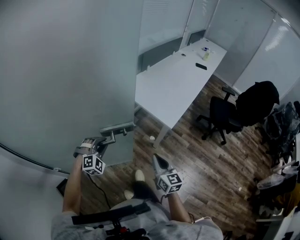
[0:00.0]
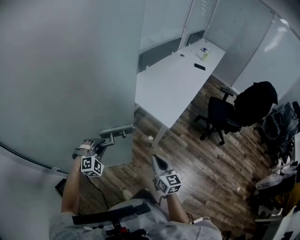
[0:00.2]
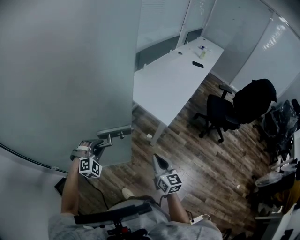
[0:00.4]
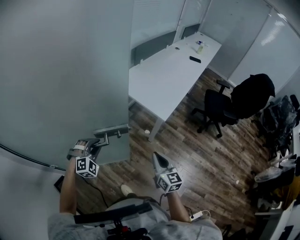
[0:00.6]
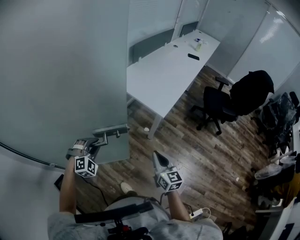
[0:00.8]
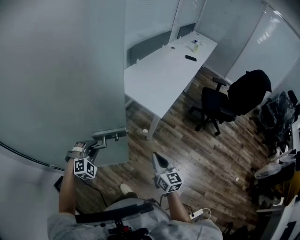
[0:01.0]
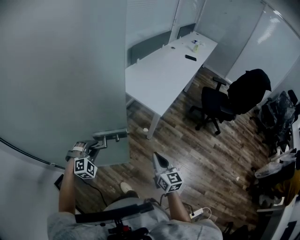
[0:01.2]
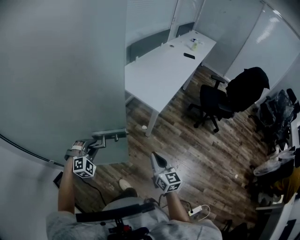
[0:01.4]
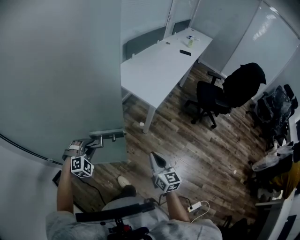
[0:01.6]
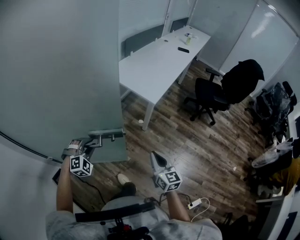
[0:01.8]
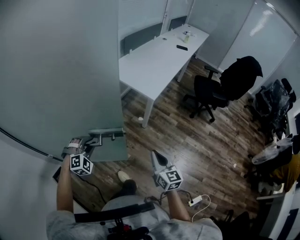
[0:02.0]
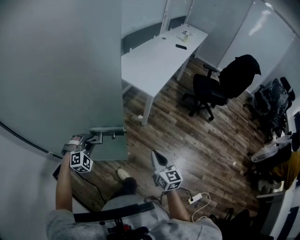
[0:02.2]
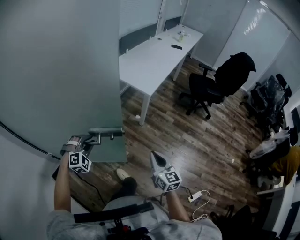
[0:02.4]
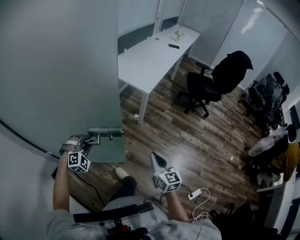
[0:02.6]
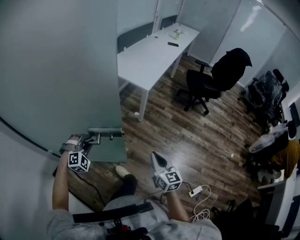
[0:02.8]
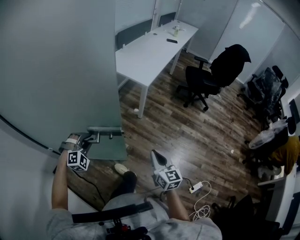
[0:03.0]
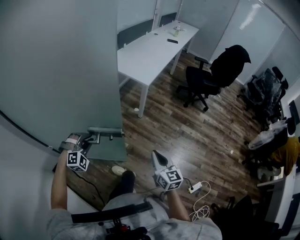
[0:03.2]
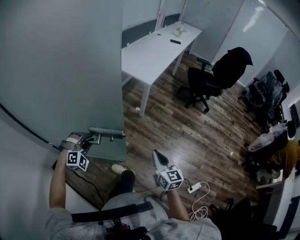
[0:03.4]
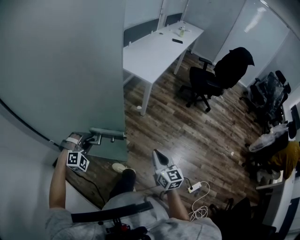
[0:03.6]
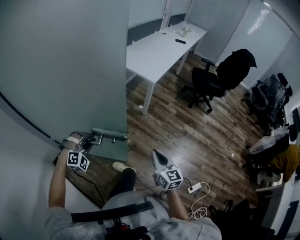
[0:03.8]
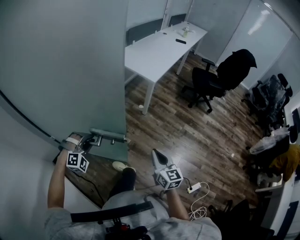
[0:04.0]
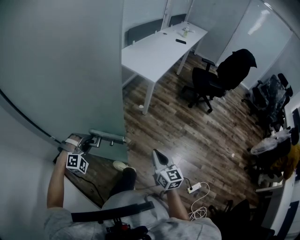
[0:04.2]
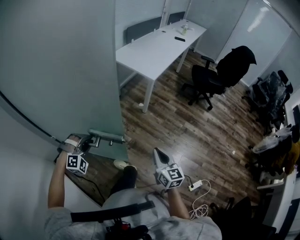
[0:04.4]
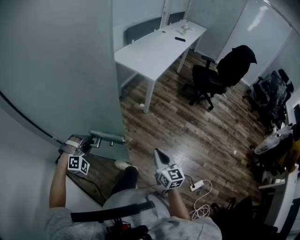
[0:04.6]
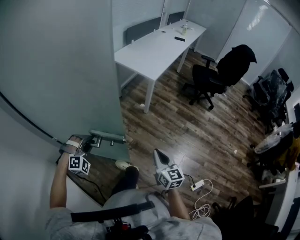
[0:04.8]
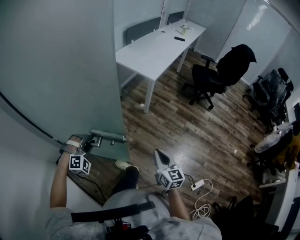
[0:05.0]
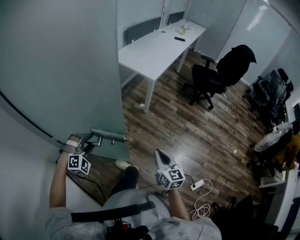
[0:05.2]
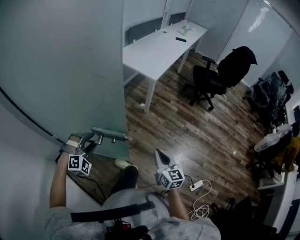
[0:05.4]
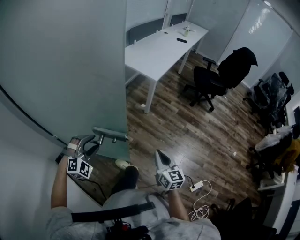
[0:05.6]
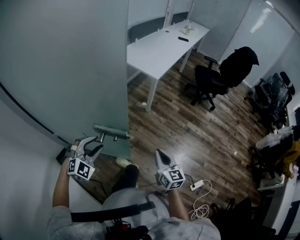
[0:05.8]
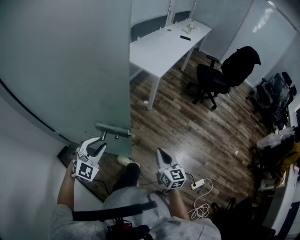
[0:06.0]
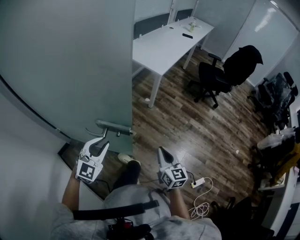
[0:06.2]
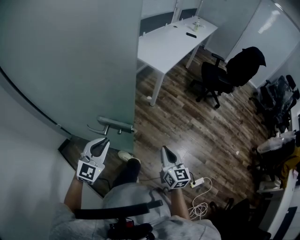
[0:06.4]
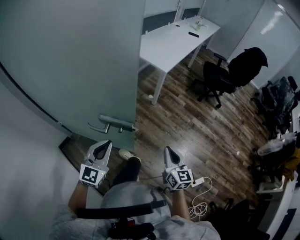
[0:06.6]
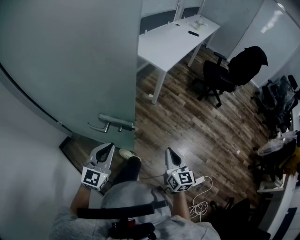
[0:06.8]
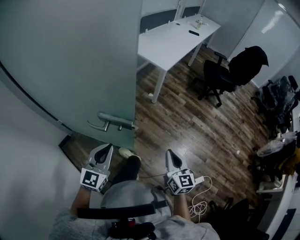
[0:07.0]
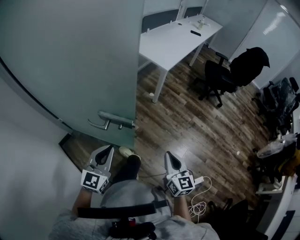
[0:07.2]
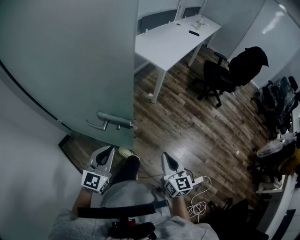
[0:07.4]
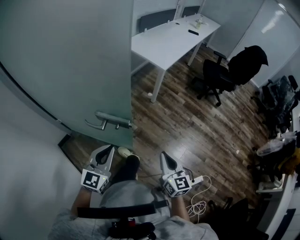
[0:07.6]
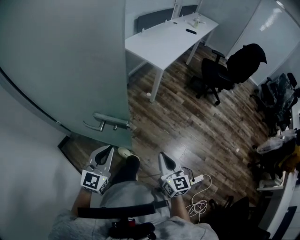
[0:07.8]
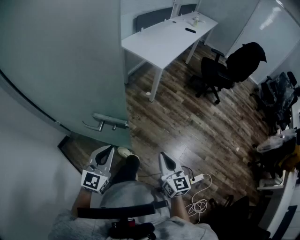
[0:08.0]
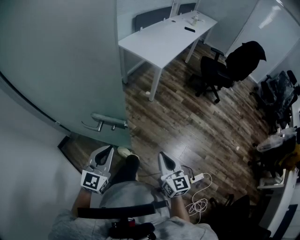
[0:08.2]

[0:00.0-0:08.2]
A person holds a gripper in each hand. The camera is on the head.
0:00.0 to 0:01.6: The left gripper shifts approximately 15 cm backward, while the right gripper travels backward and to the right by roughly 15 cm.
0:01.6 to 0:03.2: The grippers both shift backward by roughly 20 cm.
0:03.2 to 0:05.0: The left gripper is displaced backward by about 5 cm.
0:05.0 to 0:06.6: The left gripper travels upward, backward and to the right by approximately 15 cm, rolls counterclockwise, seen from behind, by roughly 70 degrees, and closes up.
0:06.6 to 0:08.2: The left gripper ends up approximately 5 cm from where it was.

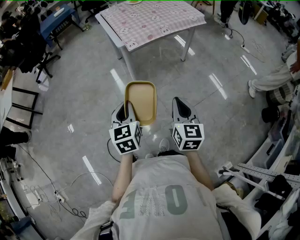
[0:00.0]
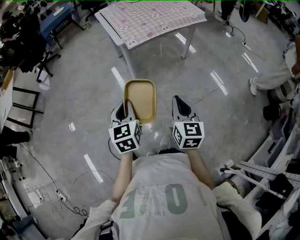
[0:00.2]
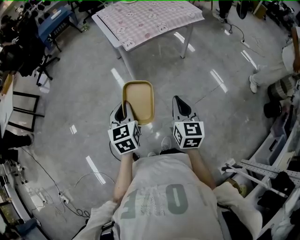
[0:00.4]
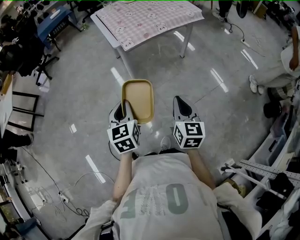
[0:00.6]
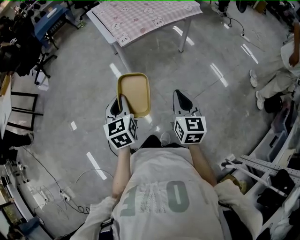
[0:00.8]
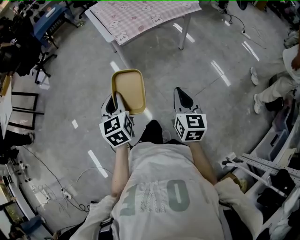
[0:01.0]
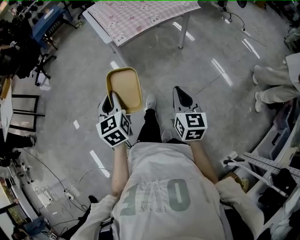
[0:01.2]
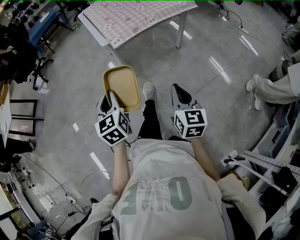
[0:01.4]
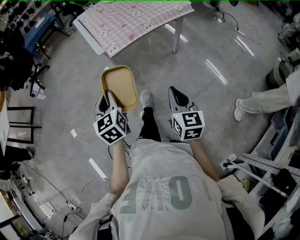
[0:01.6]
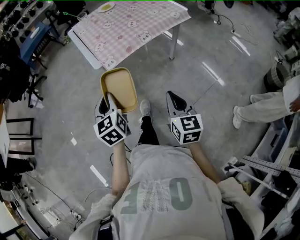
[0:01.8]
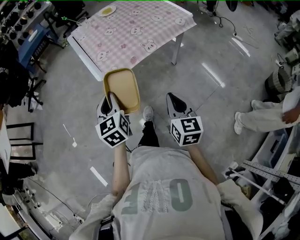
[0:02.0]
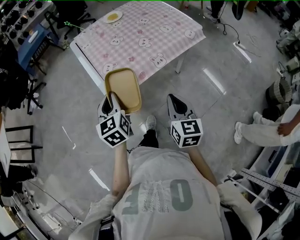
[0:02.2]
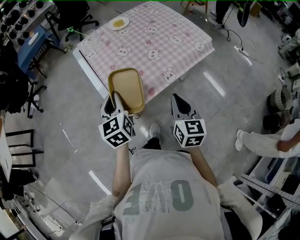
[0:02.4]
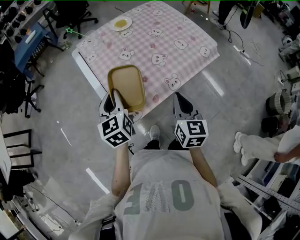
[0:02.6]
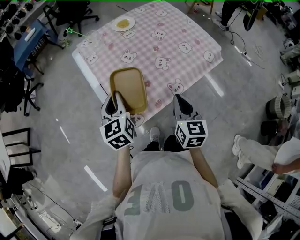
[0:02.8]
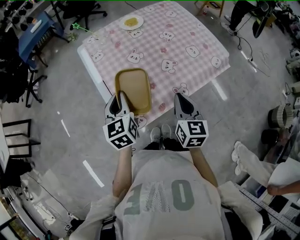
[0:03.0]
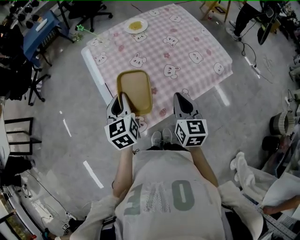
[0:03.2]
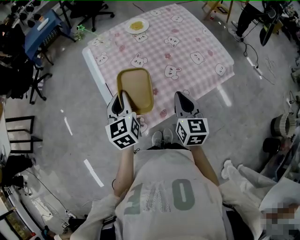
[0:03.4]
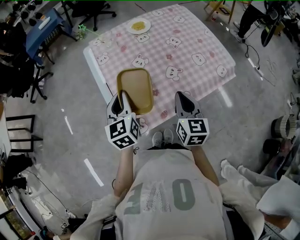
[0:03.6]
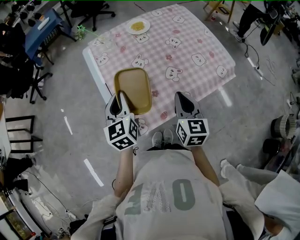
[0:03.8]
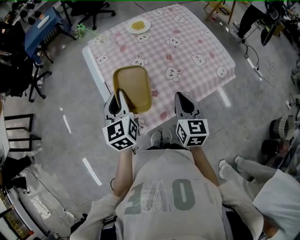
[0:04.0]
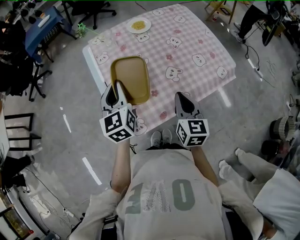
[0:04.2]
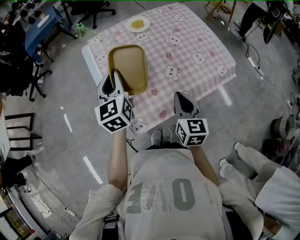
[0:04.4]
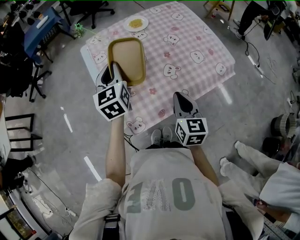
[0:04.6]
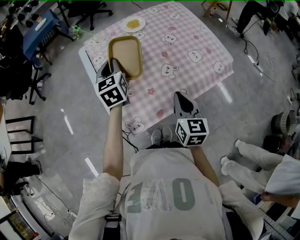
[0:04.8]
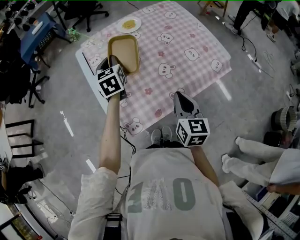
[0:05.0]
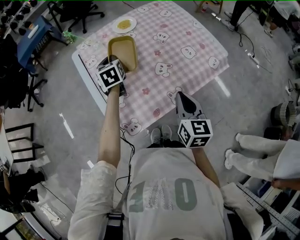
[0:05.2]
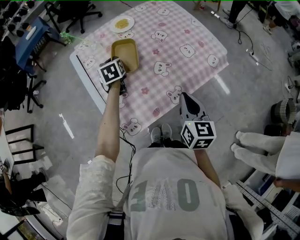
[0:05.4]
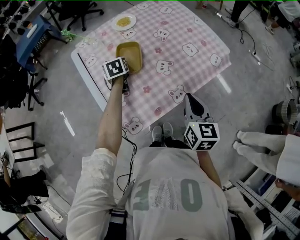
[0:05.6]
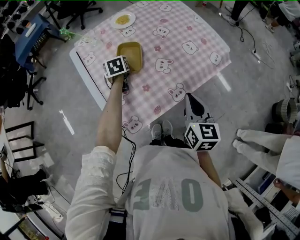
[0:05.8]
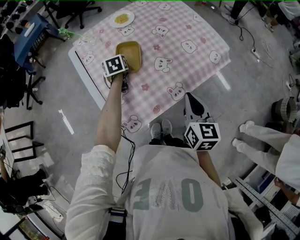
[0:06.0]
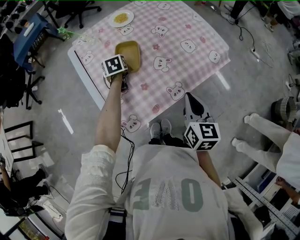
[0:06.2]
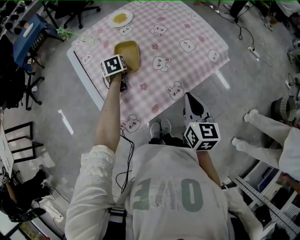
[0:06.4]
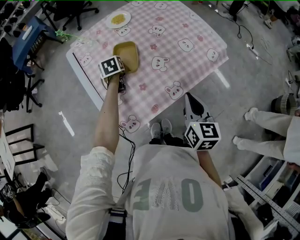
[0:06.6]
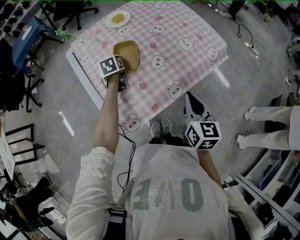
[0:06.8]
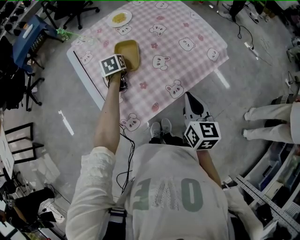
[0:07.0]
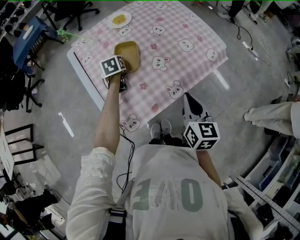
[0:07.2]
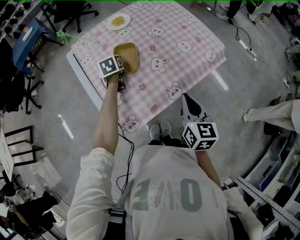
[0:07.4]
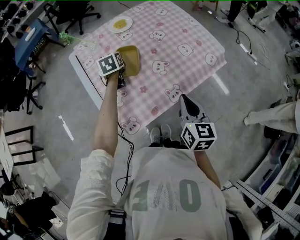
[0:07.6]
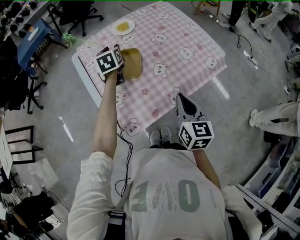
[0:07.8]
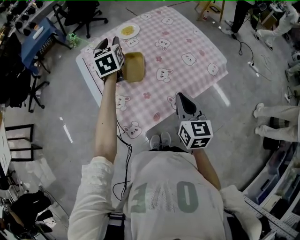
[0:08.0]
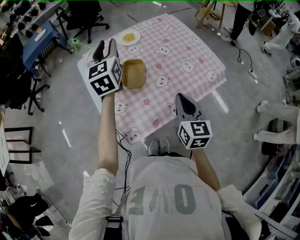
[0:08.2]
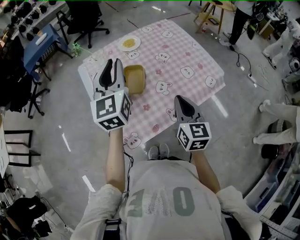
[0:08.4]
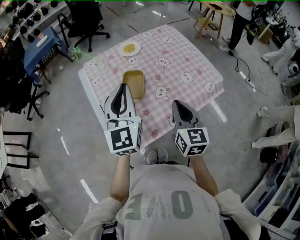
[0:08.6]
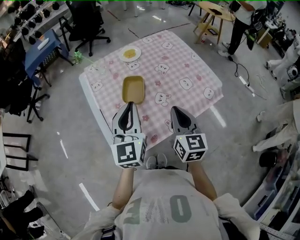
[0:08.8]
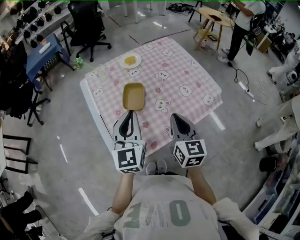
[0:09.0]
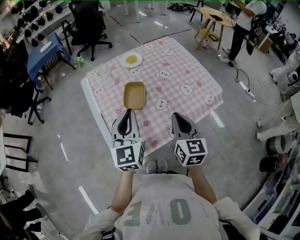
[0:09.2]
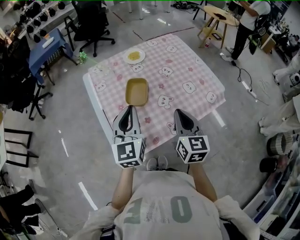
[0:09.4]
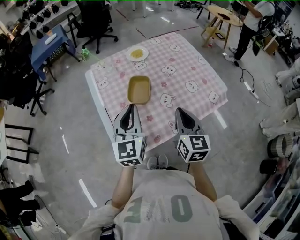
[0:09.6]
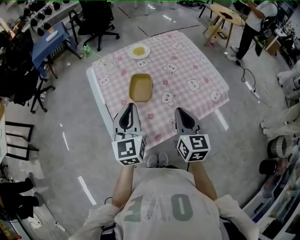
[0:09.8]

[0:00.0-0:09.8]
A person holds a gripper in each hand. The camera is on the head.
0:00.0 to 0:01.4: The left gripper goes approximately 10 cm forward. The right gripper travels to the right and forward by roughly 10 cm.
0:01.4 to 0:02.8: The pair of grippers is taken forward, about 50 cm.
0:02.8 to 0:04.2: The grippers both shift forward by some 5 cm.
0:04.2 to 0:05.6: The left gripper travels downward and forward by approximately 25 cm, and tilts its fingers some 30 degrees downward, while the right gripper goes some 5 cm to the right.
0:05.6 to 0:07.0: The left gripper opens up.
0:07.0 to 0:08.4: The right gripper travels forward and upward by roughly 10 cm; the left gripper heads upward, covering about 30 cm, and tips its fingers upward by about 50 degrees.
0:08.4 to 0:09.8: The left gripper goes roughly 15 cm downward and backward.

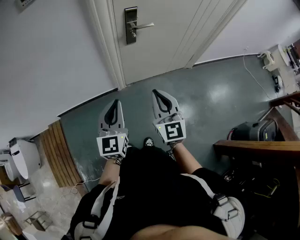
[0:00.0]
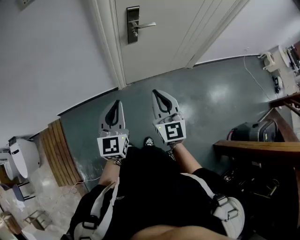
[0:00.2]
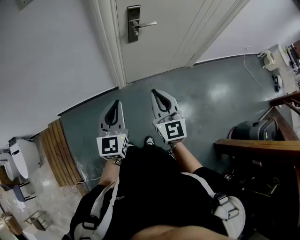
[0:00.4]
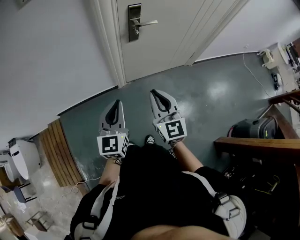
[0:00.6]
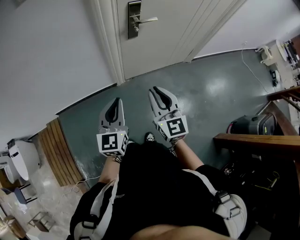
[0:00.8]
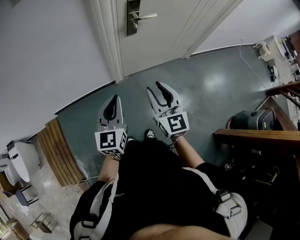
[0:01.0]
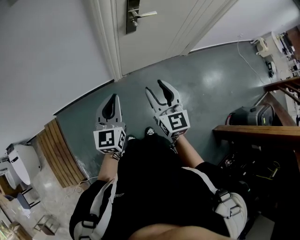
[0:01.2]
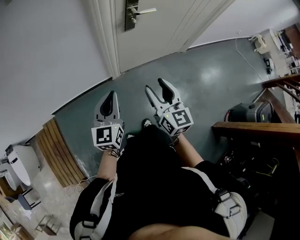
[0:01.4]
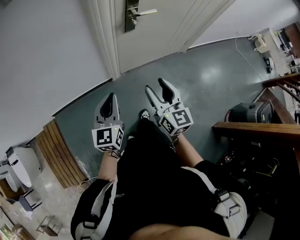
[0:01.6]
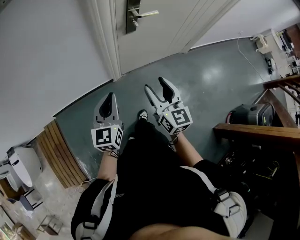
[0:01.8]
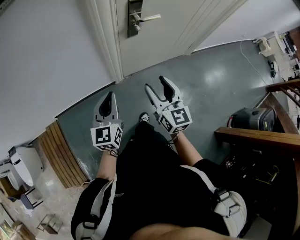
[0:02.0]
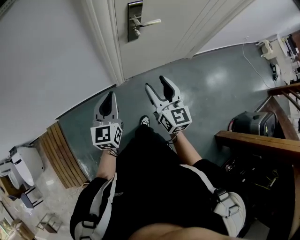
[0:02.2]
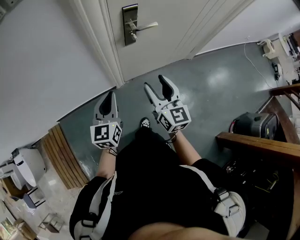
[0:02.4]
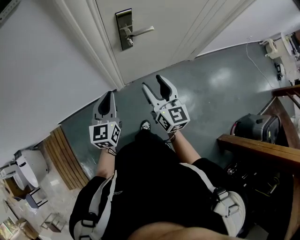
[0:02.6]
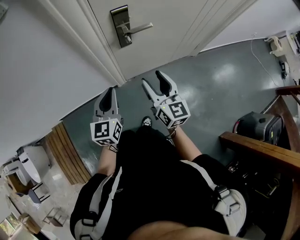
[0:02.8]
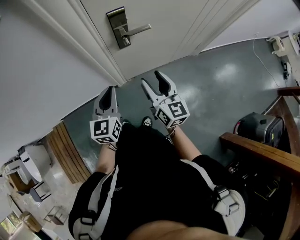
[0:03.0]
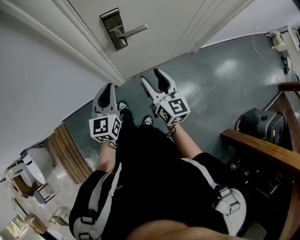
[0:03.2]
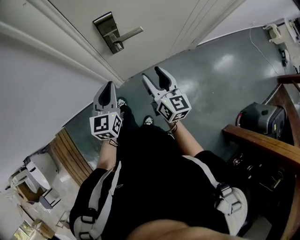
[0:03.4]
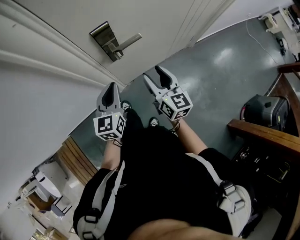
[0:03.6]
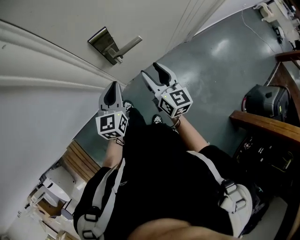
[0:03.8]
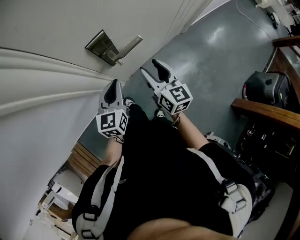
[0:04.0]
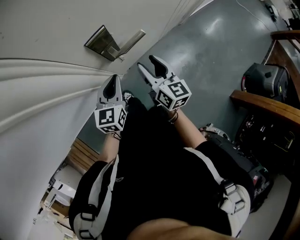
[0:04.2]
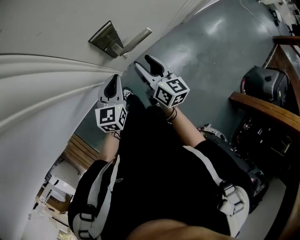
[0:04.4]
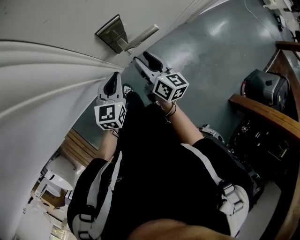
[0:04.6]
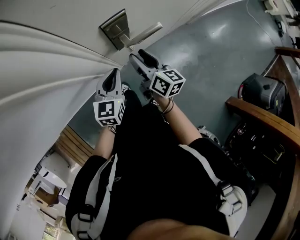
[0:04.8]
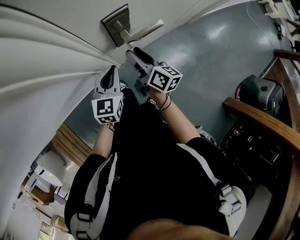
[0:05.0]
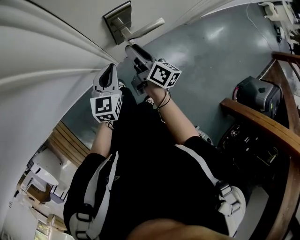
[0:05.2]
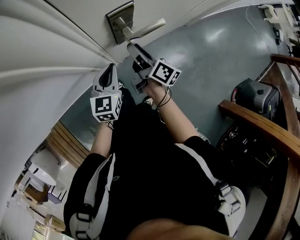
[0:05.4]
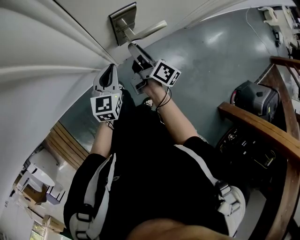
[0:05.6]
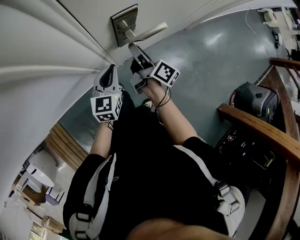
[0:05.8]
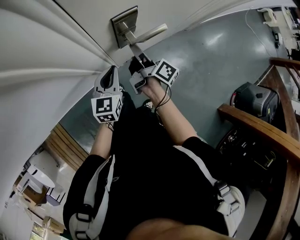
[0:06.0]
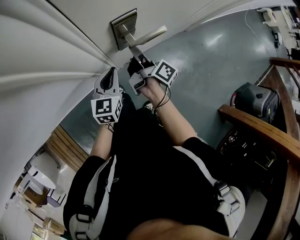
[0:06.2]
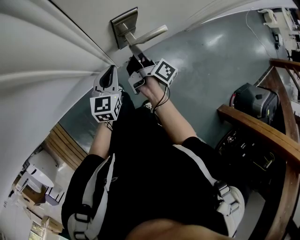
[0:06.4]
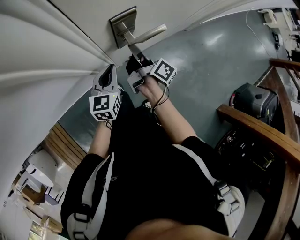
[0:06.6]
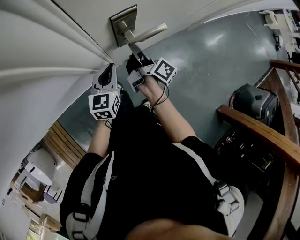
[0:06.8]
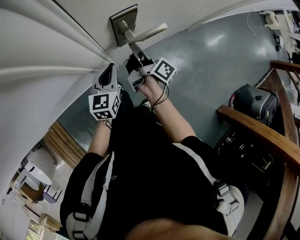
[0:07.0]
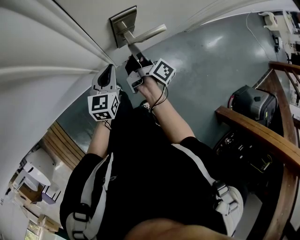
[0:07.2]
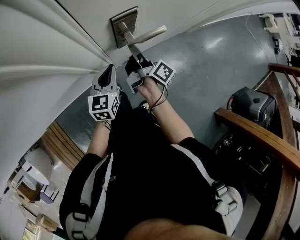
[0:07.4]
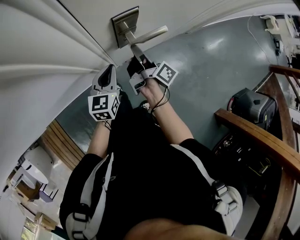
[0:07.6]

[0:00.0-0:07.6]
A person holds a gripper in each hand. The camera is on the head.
0:00.0 to 0:01.6: The right gripper moves to the left, roughly 5 cm, and opens its fingers. Meanwhile the left gripper shifts roughly 10 cm to the left, downward and forward.
0:01.6 to 0:03.0: Both grippers move forward and to the right, roughly 25 cm.
0:03.0 to 0:04.6: Both grippers travel together forward and downward, approximately 20 cm. The left gripper turns by about 20 degrees. The right gripper swivels approximately 30 degrees.
0:04.6 to 0:06.0: The right gripper rotates around the line of its fingers by about 40 degrees, clockwise from behind, and closes up.
0:06.0 to 0:07.6: The right gripper closes up.
